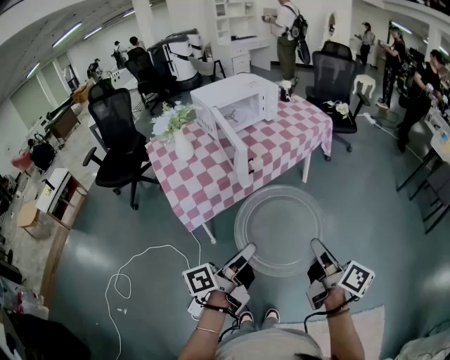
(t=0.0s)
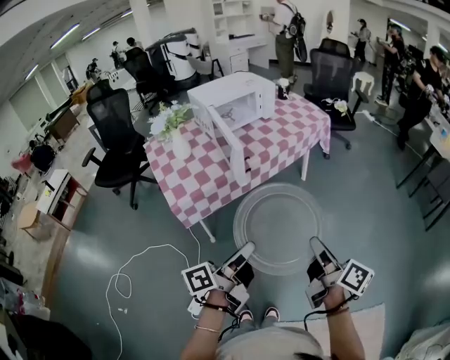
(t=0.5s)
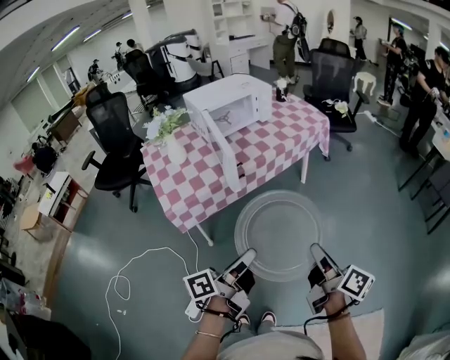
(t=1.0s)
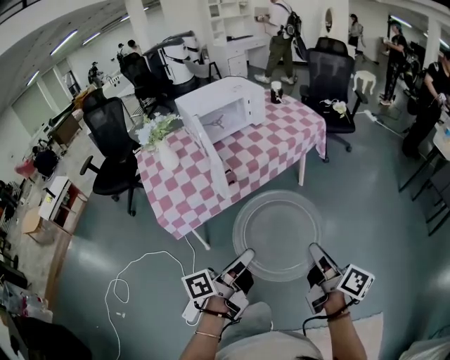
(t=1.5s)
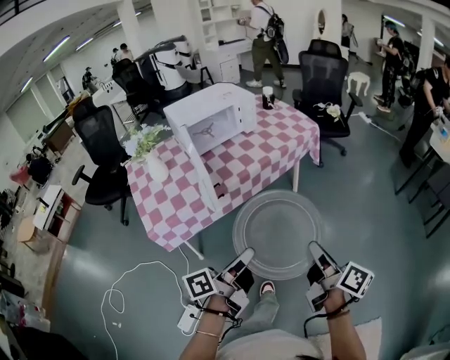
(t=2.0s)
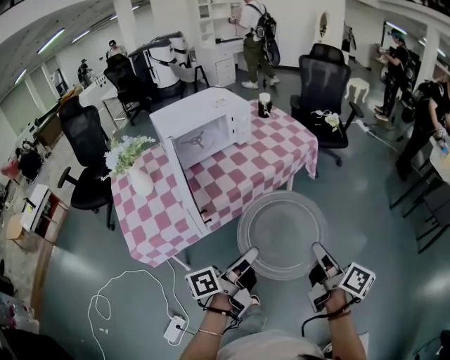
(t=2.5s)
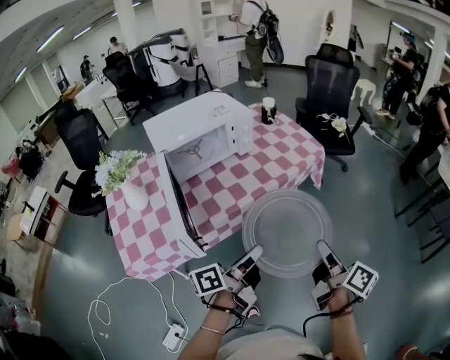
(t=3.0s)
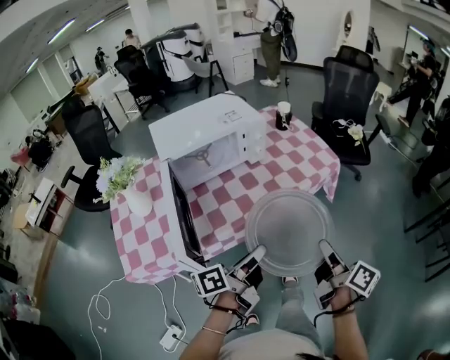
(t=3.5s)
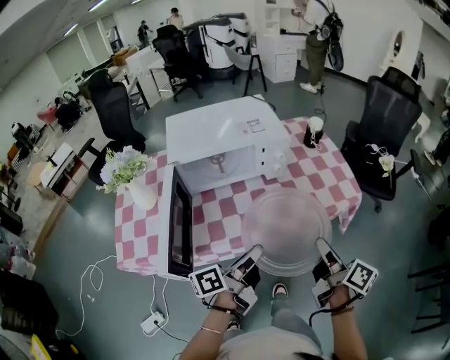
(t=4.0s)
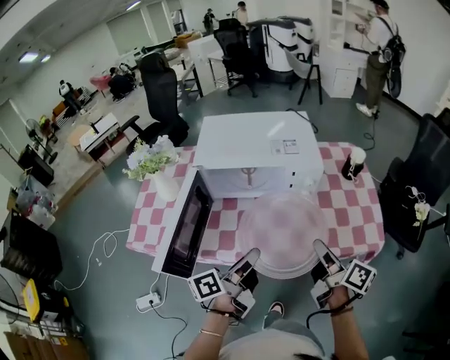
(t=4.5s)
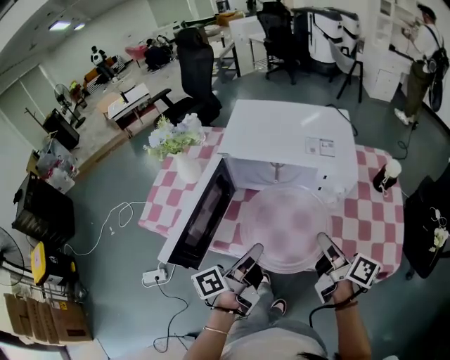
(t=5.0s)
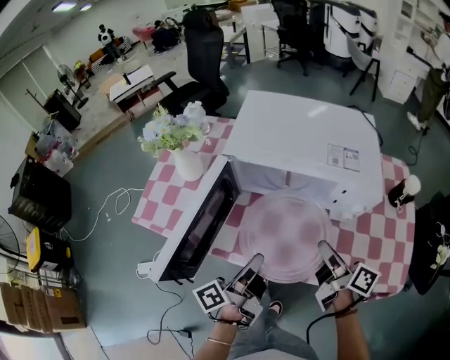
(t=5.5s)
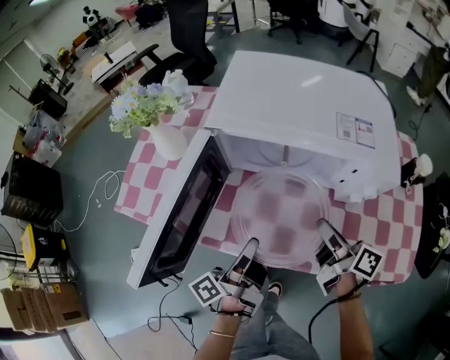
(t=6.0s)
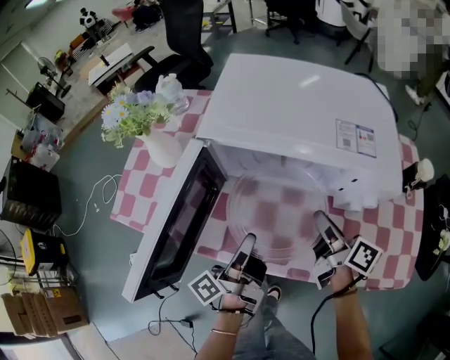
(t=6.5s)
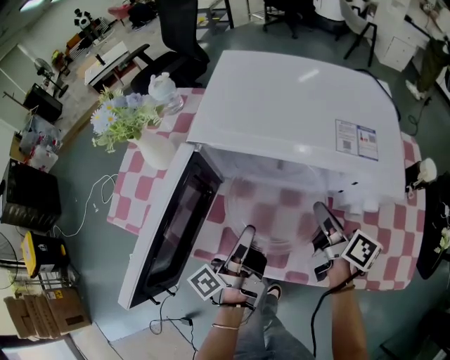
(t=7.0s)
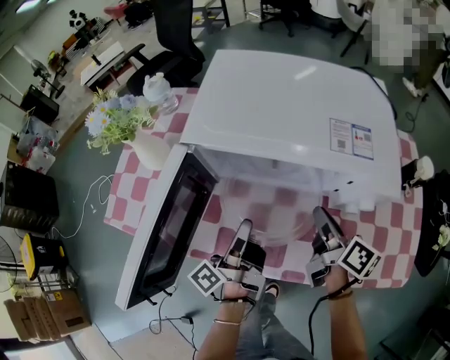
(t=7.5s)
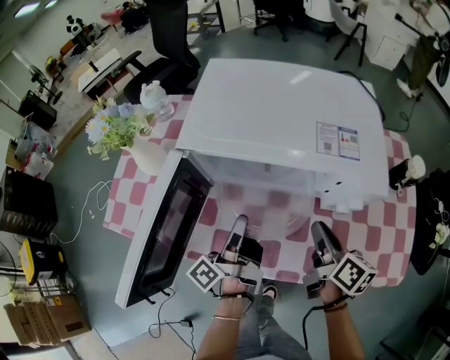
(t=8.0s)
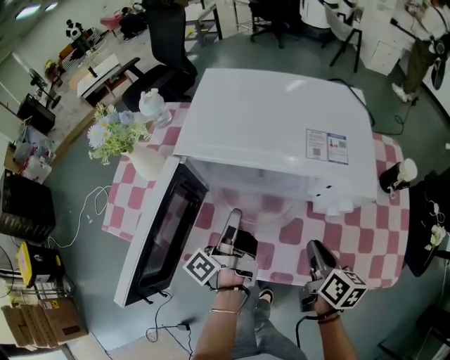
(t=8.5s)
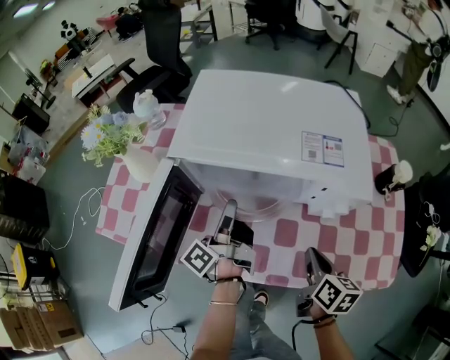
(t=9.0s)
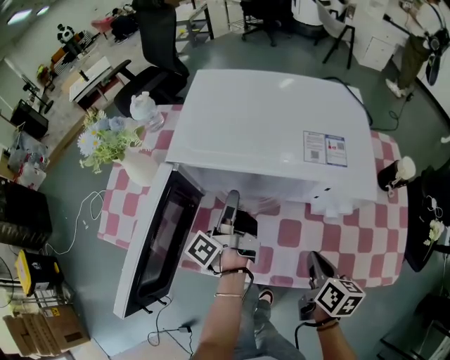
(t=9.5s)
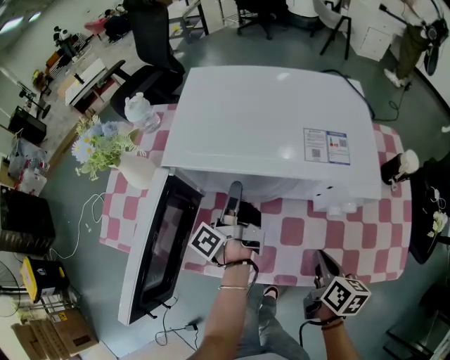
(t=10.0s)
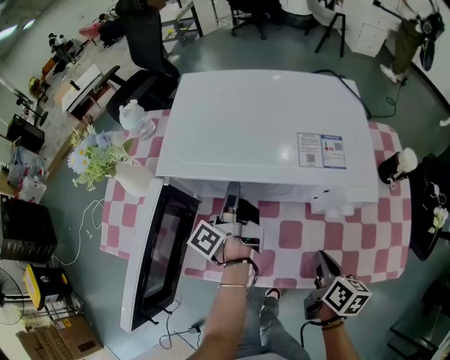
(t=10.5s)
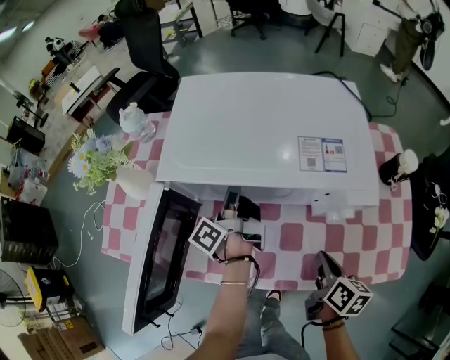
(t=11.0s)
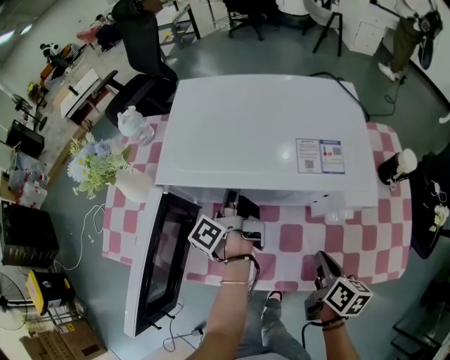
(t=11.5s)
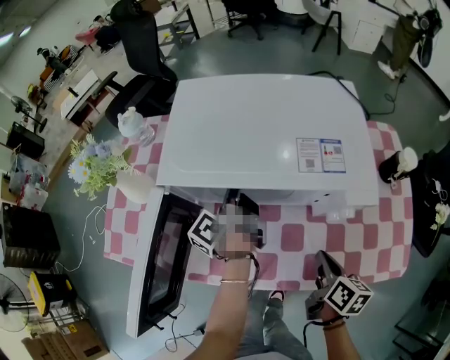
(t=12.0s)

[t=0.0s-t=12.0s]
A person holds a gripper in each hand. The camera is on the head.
t=0.0s to t=2.0s: The left gripper goes about 15 cm forward and to the right; the right gripper shifts some 15 cm to the right and forward.
t=2.0s to t=4.0s: The pair of grippers is taken forward, roughly 40 cm.
t=4.0s to t=6.0s: The right gripper ends up approximately 30 cm from where it was, and swivels roughly 50 degrees, while the left gripper ends up approximately 20 cm from where it was, and swivels some 50 degrees.
t=6.0s to t=8.0s: The left gripper heads forward, covering approximately 10 cm. The right gripper reaches some 10 cm forward, then returns.
t=8.0s to t=10.0s: The right gripper moves backward, roughly 5 cm. Meanwhile the left gripper goes some 10 cm forward.
t=10.0s to t=12.0s: The grippers stay close to where they were, moving slightly.

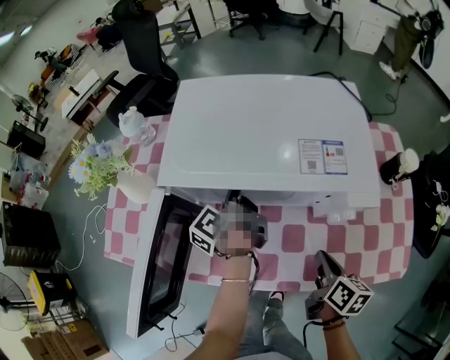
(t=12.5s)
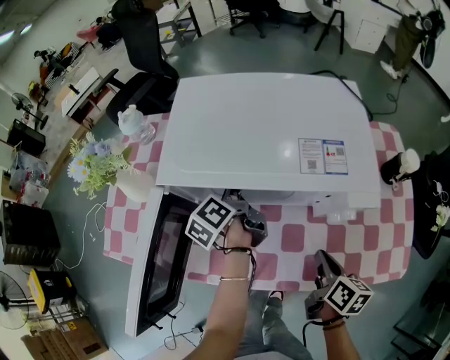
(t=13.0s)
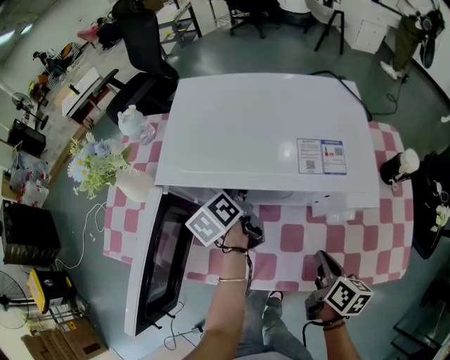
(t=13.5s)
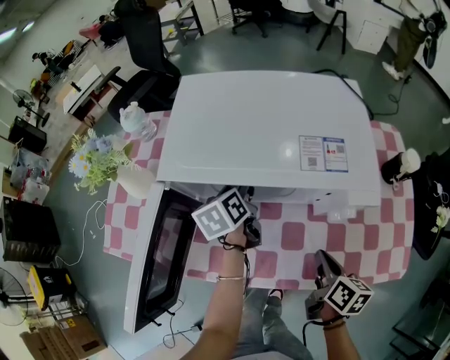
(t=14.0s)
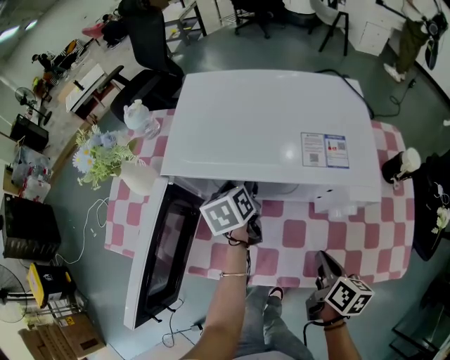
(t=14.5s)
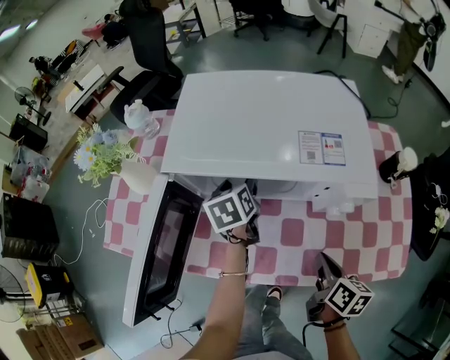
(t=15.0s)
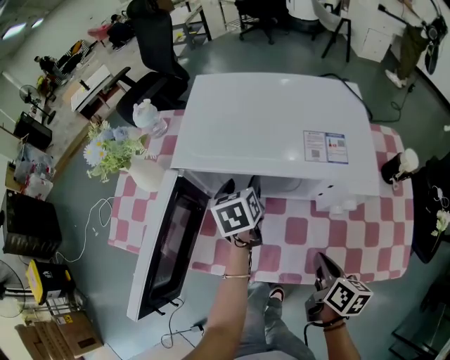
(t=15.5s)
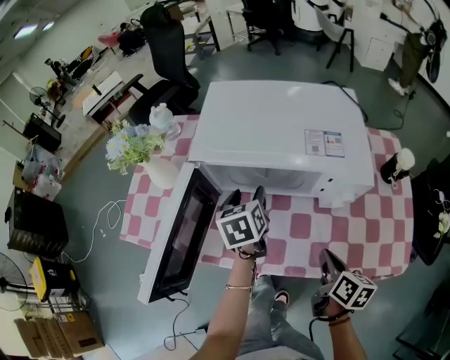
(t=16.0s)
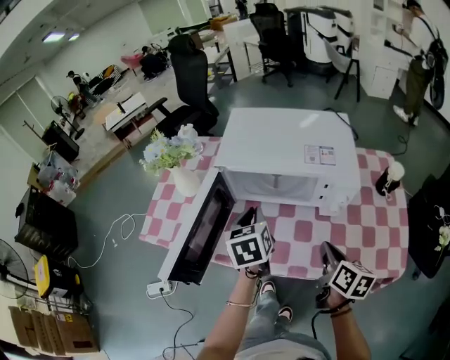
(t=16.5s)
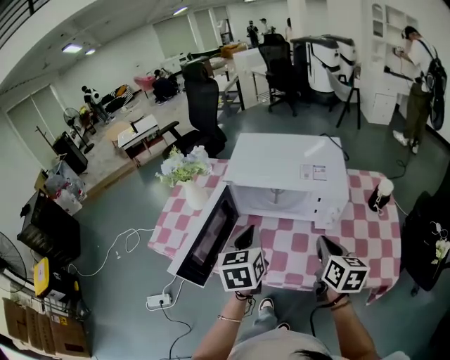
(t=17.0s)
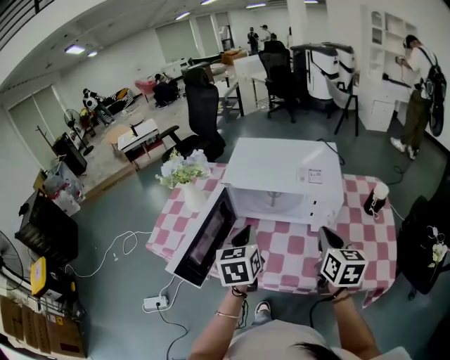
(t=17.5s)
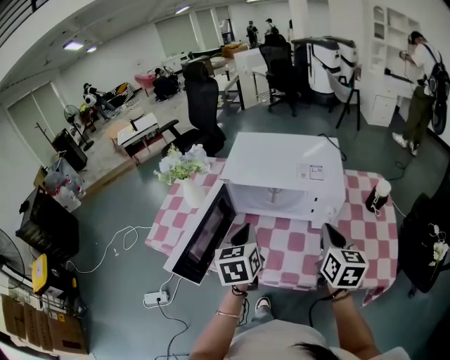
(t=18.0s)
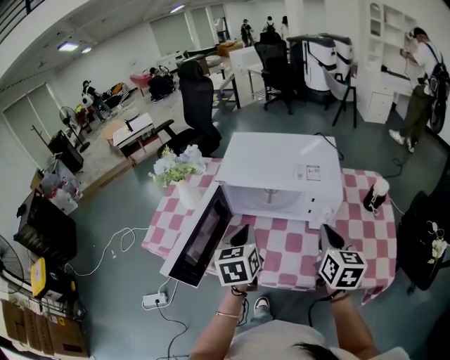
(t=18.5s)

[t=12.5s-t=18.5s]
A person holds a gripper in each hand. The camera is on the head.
t=12.5s to t=14.5s: The left gripper rotates around the line of its fingers by roughly 50 degrees, clockwise from behind, and opens its fingers.
t=14.5s to t=16.5s: The left gripper moves backward and upward, some 20 cm, and closes. Meanwhile the right gripper heads upward, covering about 10 cm.
t=16.5s to t=18.5s: The right gripper travels upward by approximately 10 cm, and swivels roughly 30 degrees; the left gripper moves backward, roughly 5 cm.

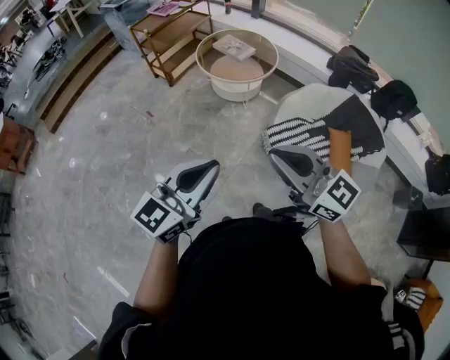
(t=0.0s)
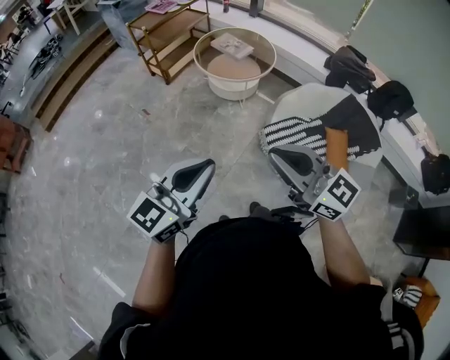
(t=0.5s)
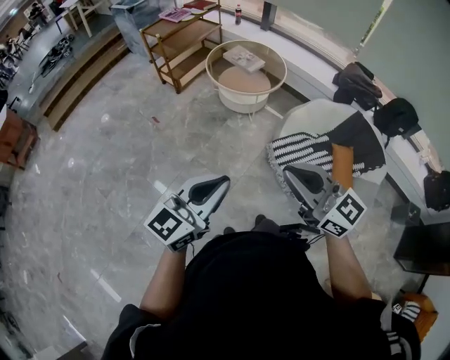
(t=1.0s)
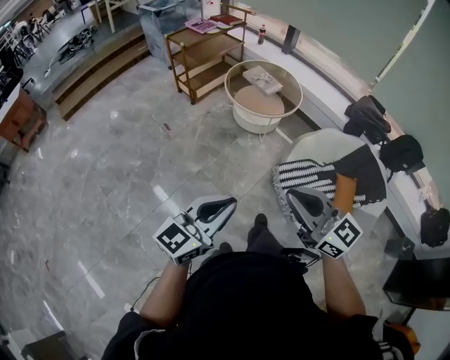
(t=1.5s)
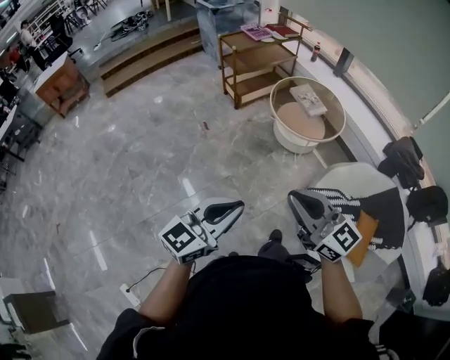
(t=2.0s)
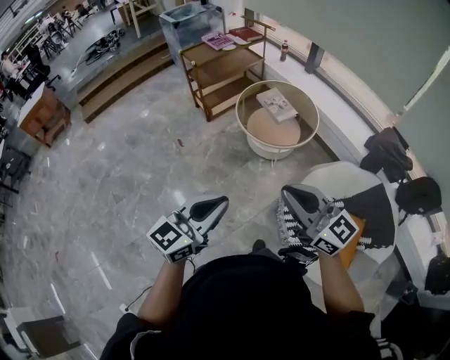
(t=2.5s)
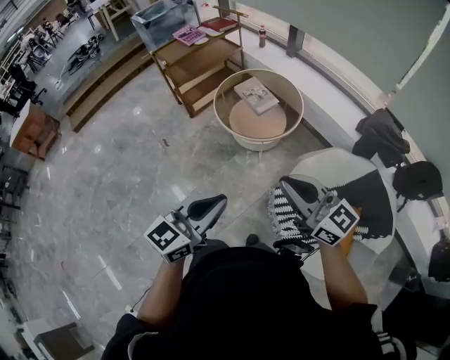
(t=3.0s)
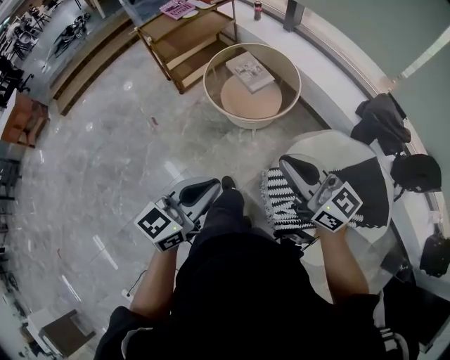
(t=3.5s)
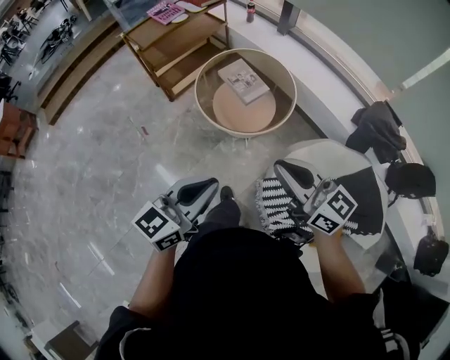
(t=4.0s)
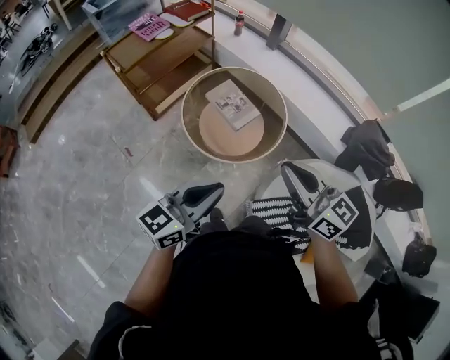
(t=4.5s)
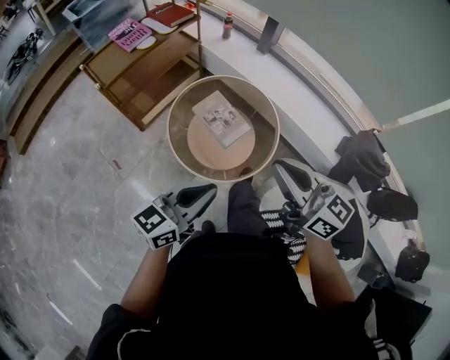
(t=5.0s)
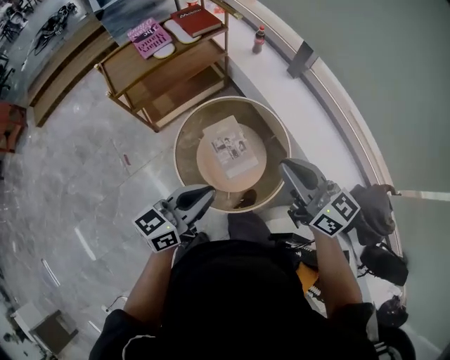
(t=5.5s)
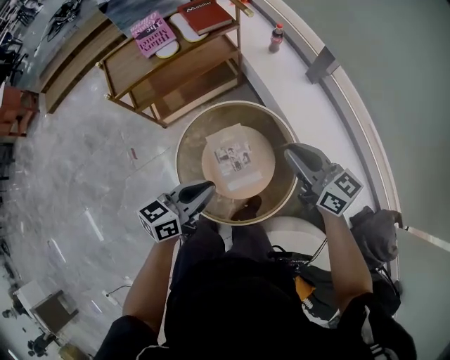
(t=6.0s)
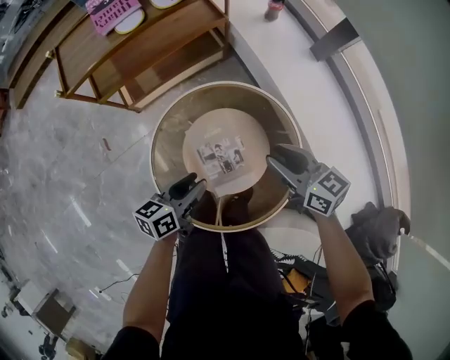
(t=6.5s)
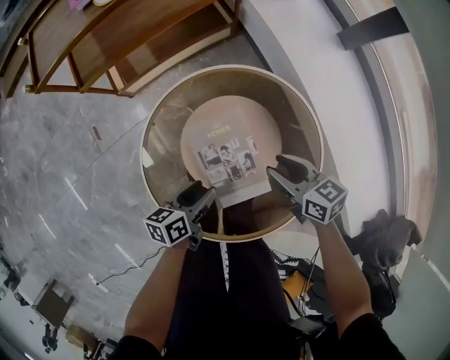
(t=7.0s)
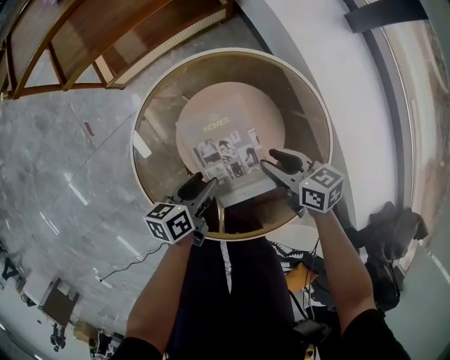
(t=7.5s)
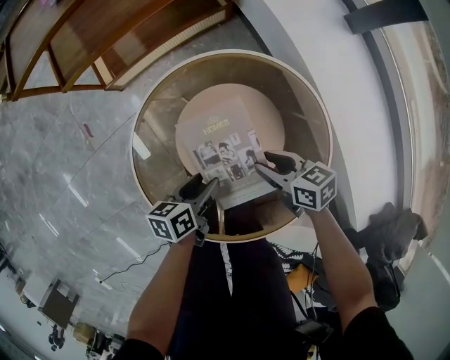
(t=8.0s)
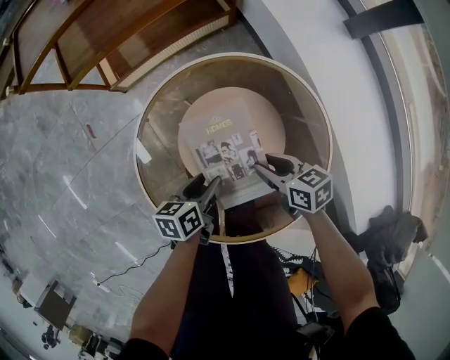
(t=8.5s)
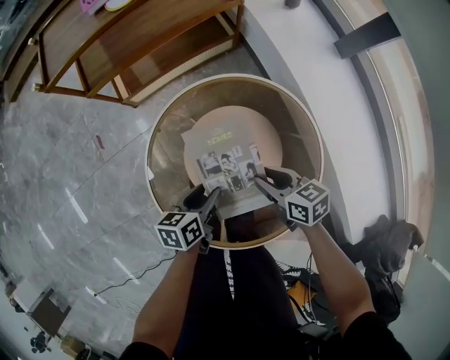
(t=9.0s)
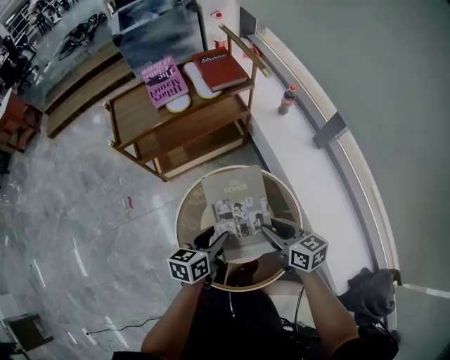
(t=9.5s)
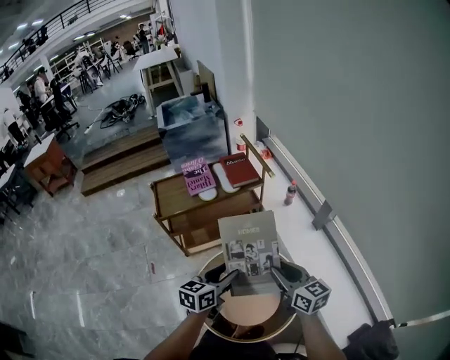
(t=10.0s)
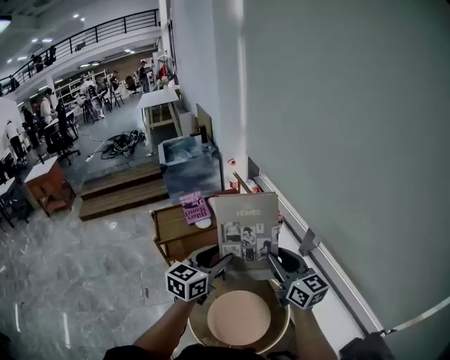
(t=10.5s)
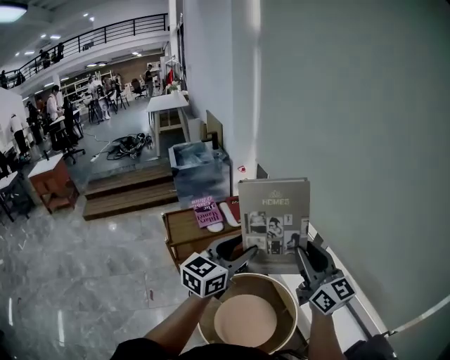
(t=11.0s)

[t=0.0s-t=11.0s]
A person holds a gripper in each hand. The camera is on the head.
t=0.0s to t=2.0s: The right gripper moves forward and to the left, some 10 cm. Meanwhile the left gripper heads to the left and forward, covering about 10 cm.
t=2.0s to t=3.5s: Both grippers travel together to the right and forward, roughly 30 cm.
t=3.5s to t=5.5s: The two grippers travel together, forward, some 50 cm.
t=5.5s to t=7.5s: Both grippers travel together downward, some 50 cm. The right gripper changes its angle by about 40 degrees, and opens. Meanwhile the left gripper tilts its fingers about 30 degrees downward, and opens.
t=7.5s to t=9.0s: The grippers make only small movements.
t=9.0s to t=11.0s: The two grippers go roughly 70 cm upward. The right gripper tilts its fingers approximately 50 degrees upward. The left gripper tilts its fingers roughly 40 degrees upward.
